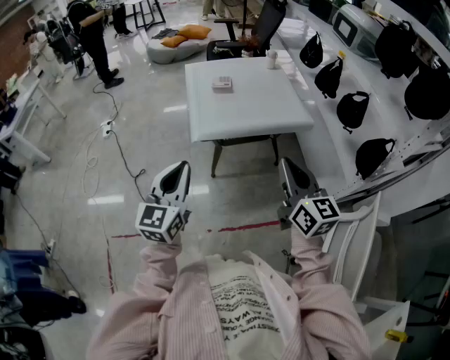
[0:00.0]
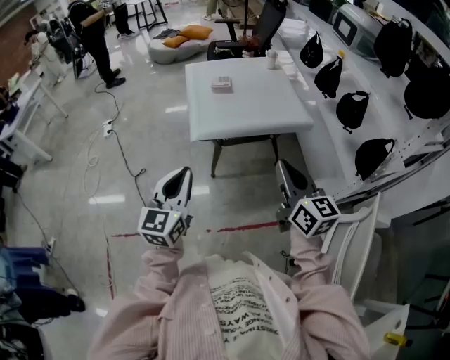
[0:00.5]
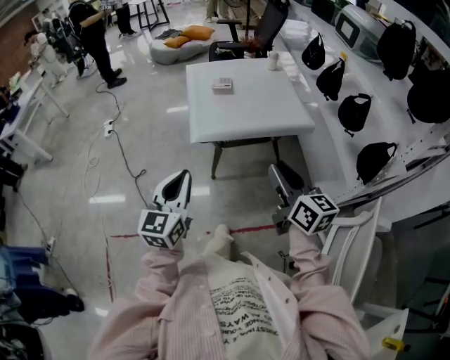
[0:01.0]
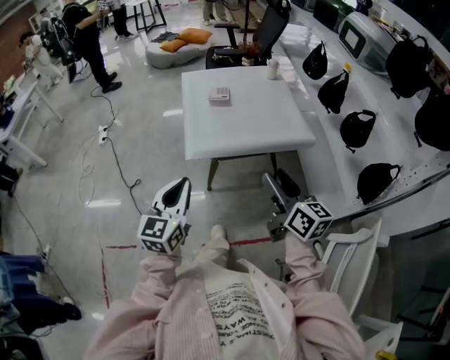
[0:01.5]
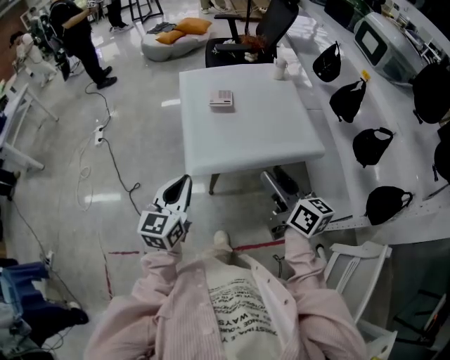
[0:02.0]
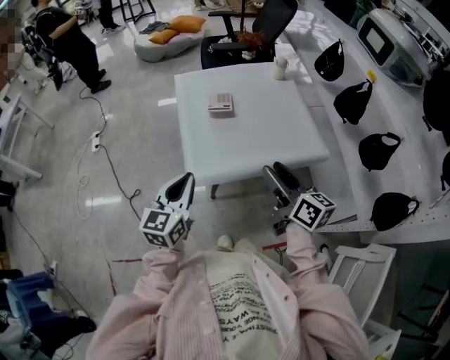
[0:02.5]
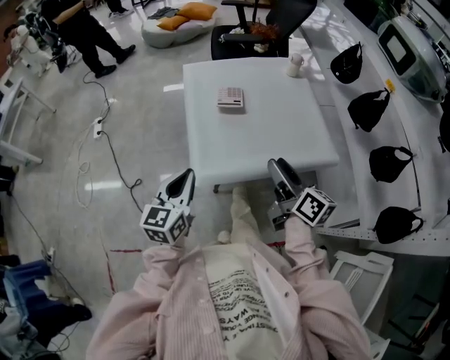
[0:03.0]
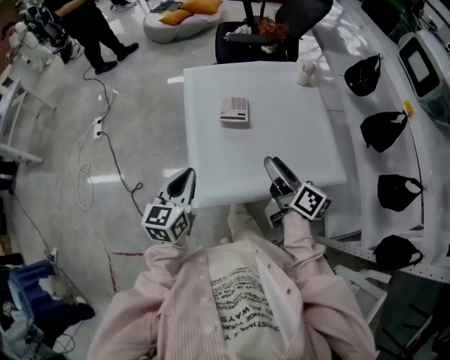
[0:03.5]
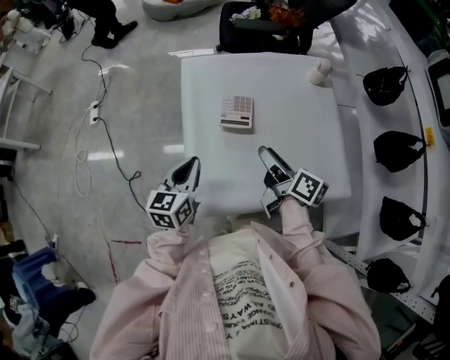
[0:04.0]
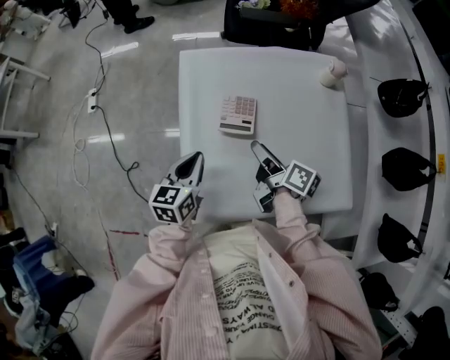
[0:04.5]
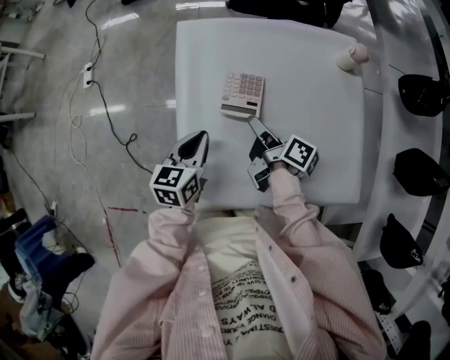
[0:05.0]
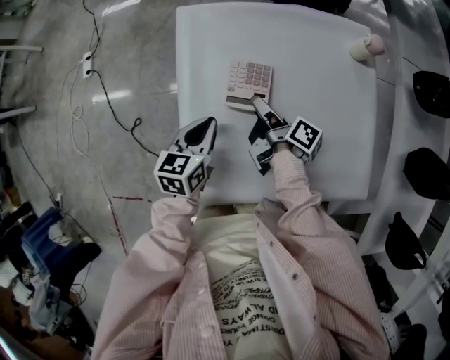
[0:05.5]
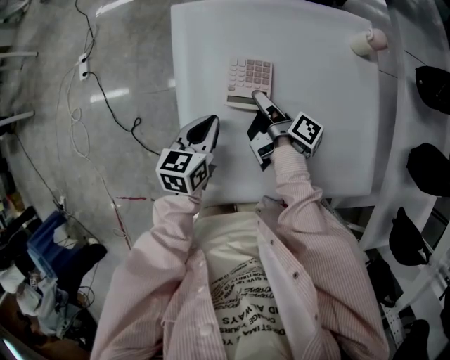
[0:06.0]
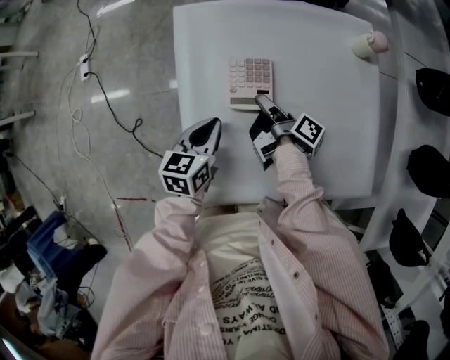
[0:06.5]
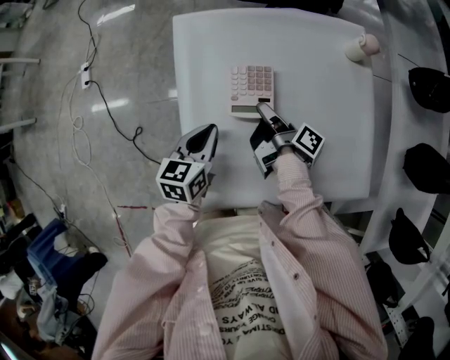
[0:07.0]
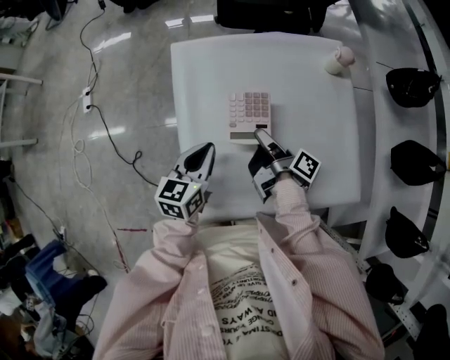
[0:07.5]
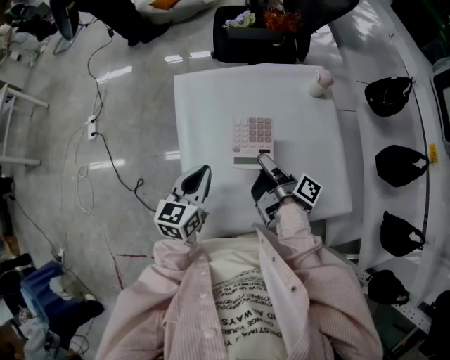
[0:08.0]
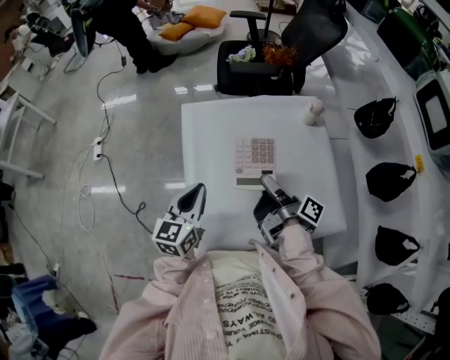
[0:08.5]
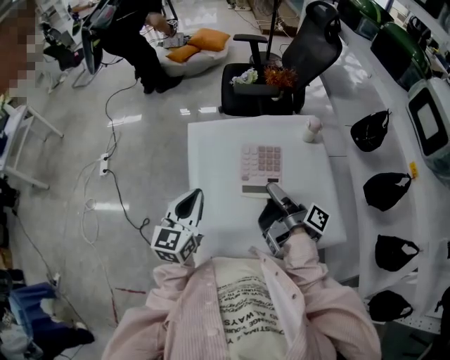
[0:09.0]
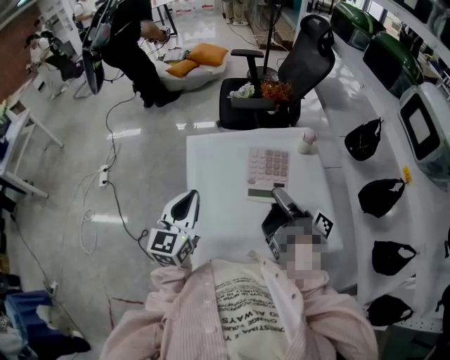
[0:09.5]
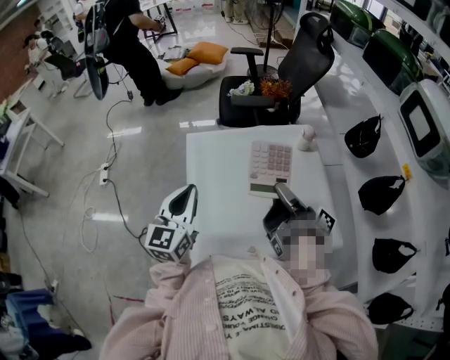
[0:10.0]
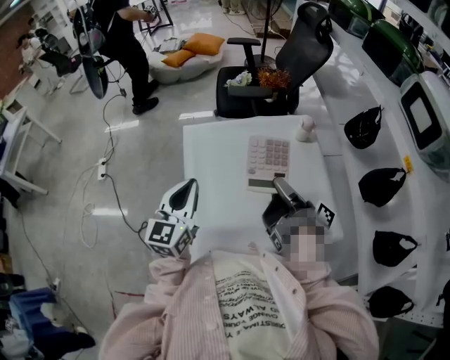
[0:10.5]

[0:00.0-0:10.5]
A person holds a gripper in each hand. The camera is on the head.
0:00.0 to 0:02.0: The left gripper moves about 20 cm.
0:02.0 to 0:04.0: The left gripper moves roughly 30 cm.
0:04.0 to 0:06.5: The left gripper shifts approximately 10 cm downward.
0:06.5 to 0:08.5: The left gripper goes downward and returns, some 10 cm each way, and rotates about 20 degrees.
0:08.5 to 0:10.5: The left gripper shifts approximately 10 cm upward.

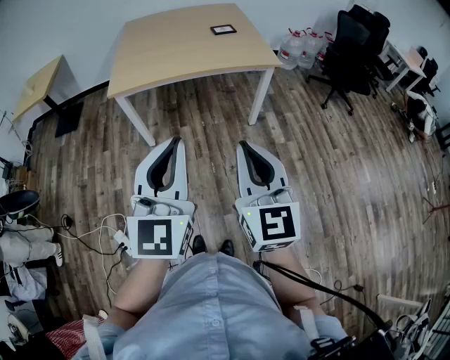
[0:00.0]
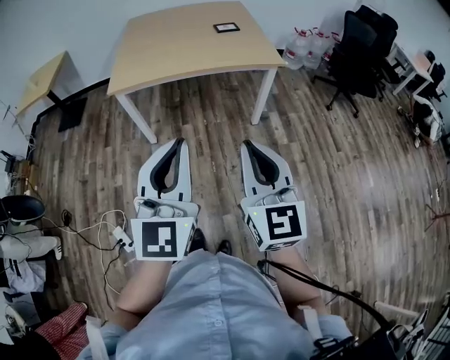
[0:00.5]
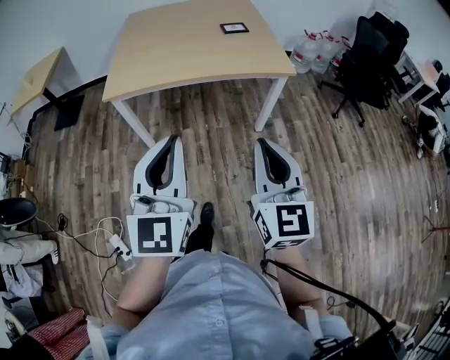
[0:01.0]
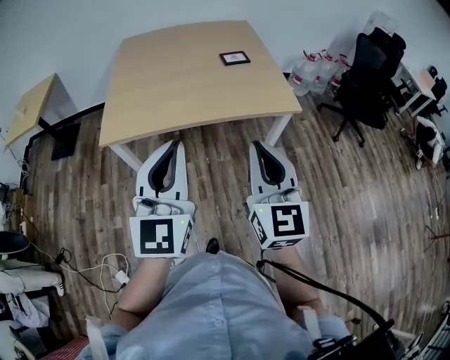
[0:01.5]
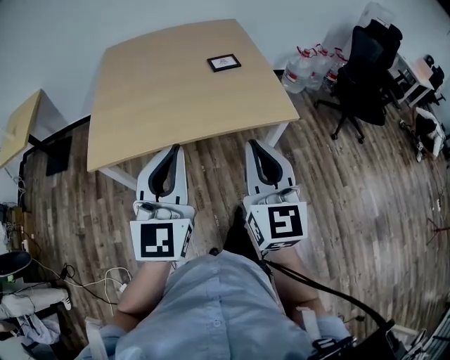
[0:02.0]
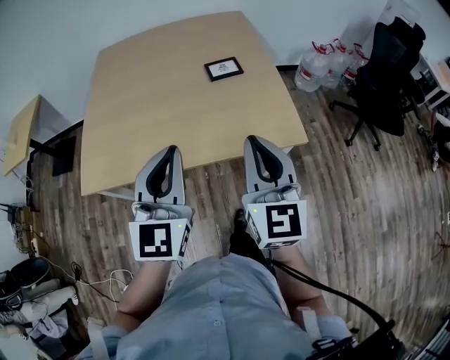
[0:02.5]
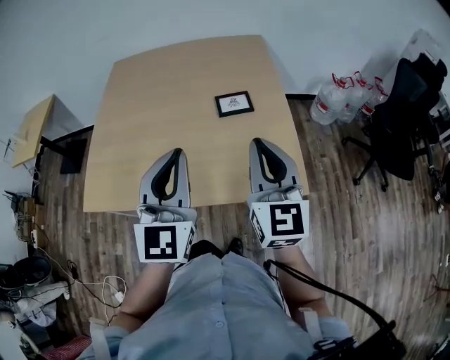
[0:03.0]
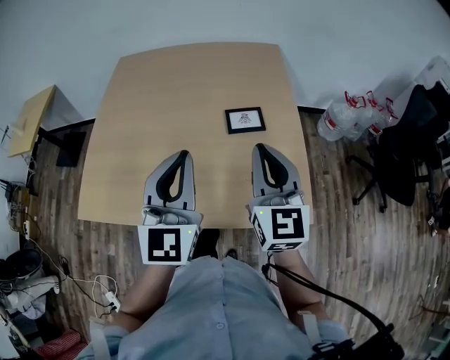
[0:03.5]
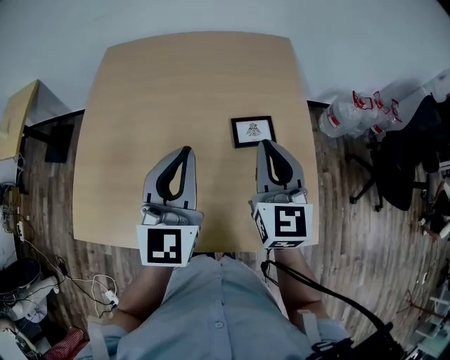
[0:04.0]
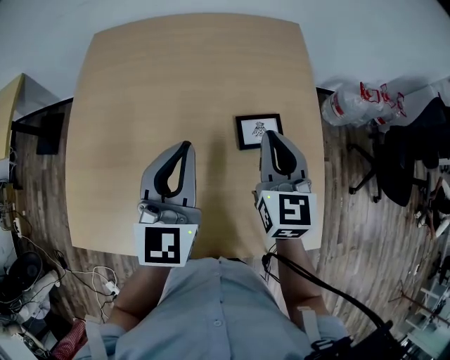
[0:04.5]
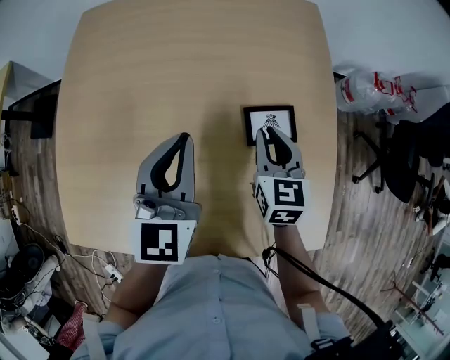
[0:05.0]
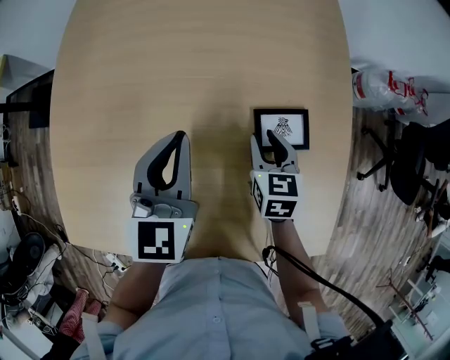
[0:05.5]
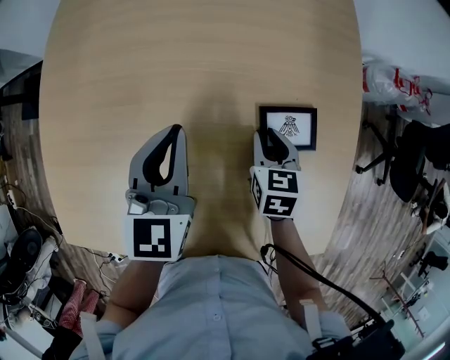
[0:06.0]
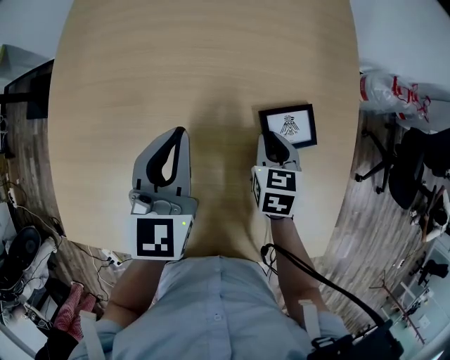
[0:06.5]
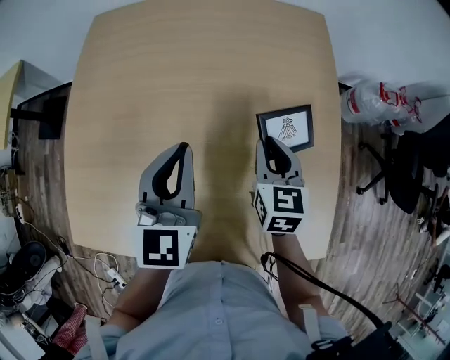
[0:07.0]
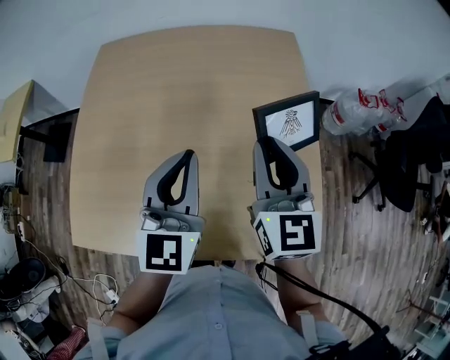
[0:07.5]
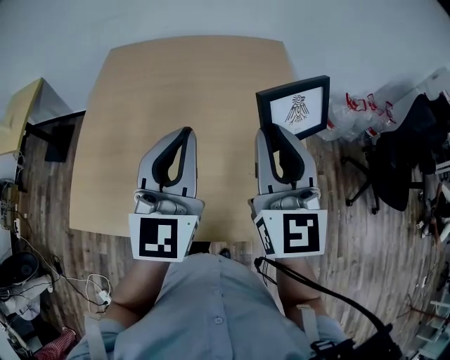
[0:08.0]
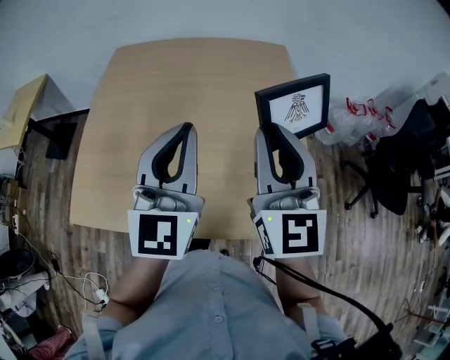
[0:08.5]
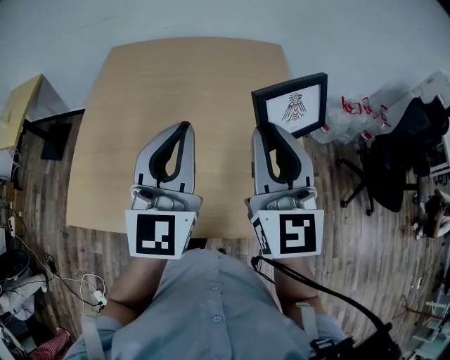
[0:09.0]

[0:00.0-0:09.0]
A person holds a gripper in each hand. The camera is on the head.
0:00.0 to 0:02.0: The grippers both shift forward by approximately 35 cm.
0:02.0 to 0:04.5: Both grippers are carried forward, about 50 cm.
0:04.5 to 0:07.0: The right gripper shifts approximately 10 cm downward.
0:07.0 to 0:09.0: The right gripper shifts approximately 30 cm upward and backward, and tilts its fingers some 40 degrees upward. Meanwhile the left gripper is displaced upward, backward and to the right by approximately 20 cm, and changes its angle by approximately 20 degrees.

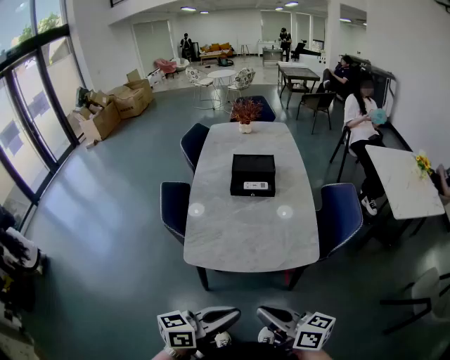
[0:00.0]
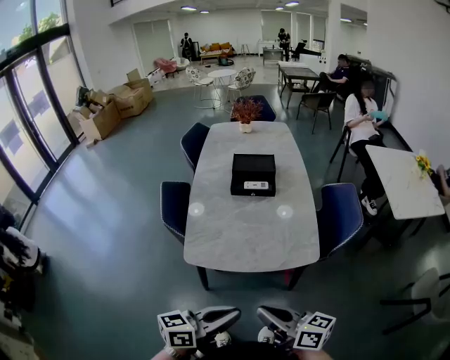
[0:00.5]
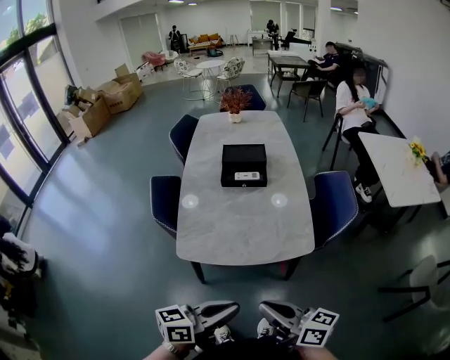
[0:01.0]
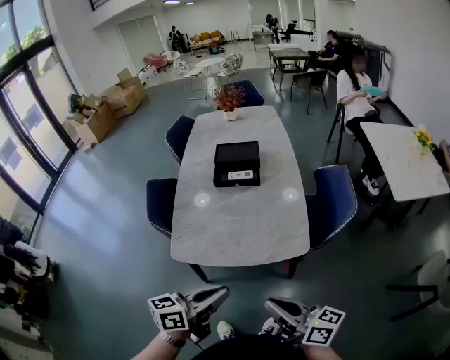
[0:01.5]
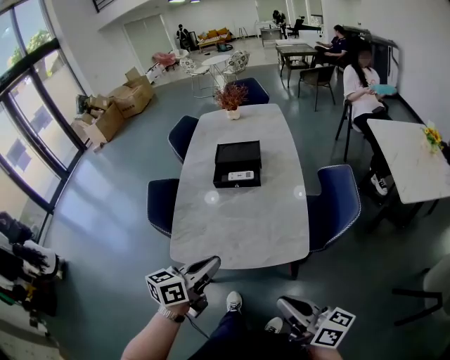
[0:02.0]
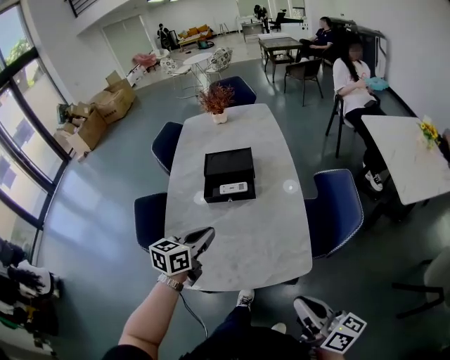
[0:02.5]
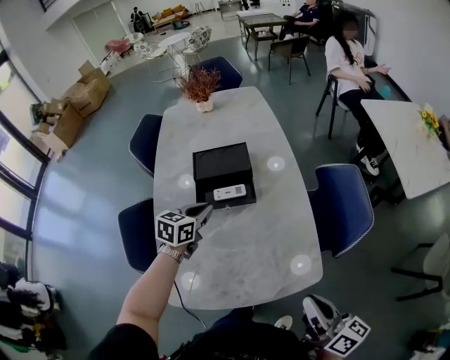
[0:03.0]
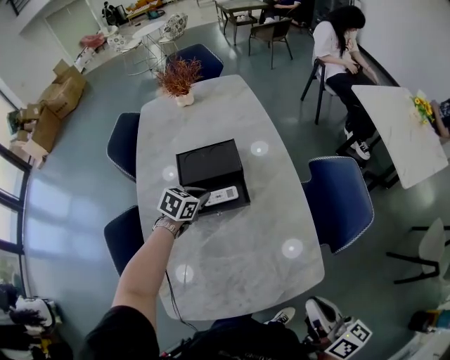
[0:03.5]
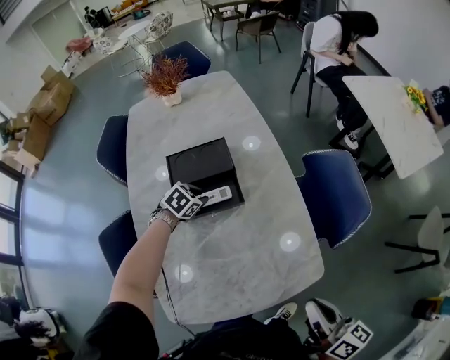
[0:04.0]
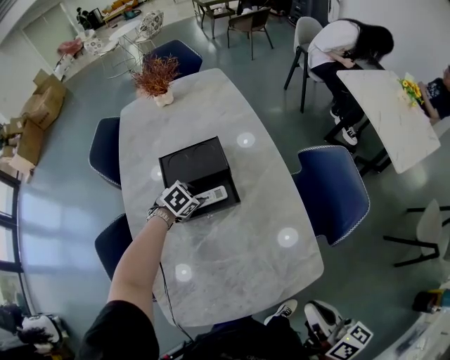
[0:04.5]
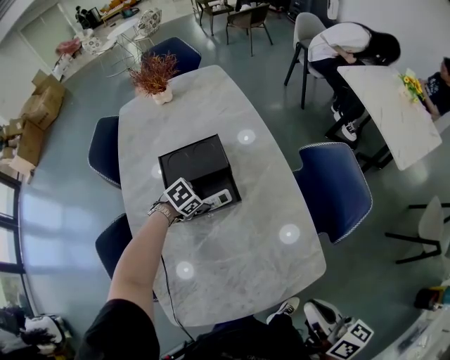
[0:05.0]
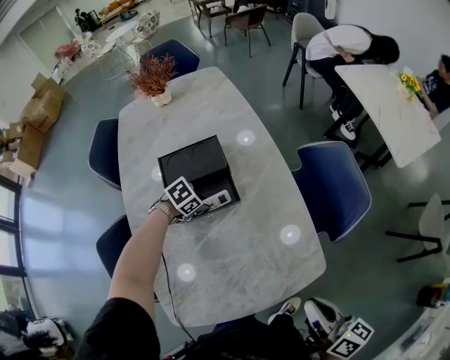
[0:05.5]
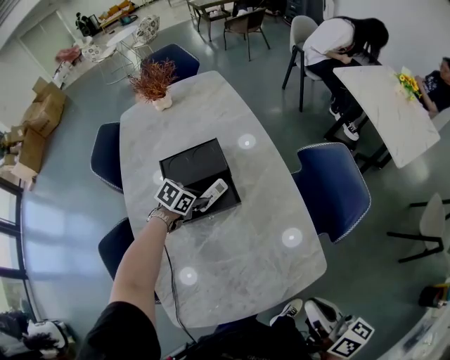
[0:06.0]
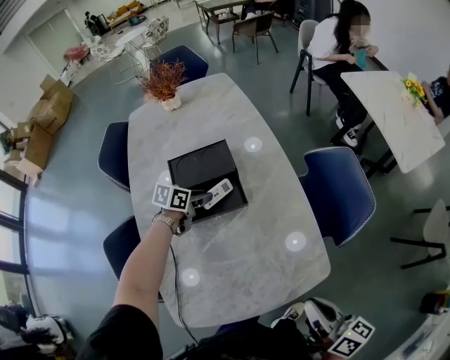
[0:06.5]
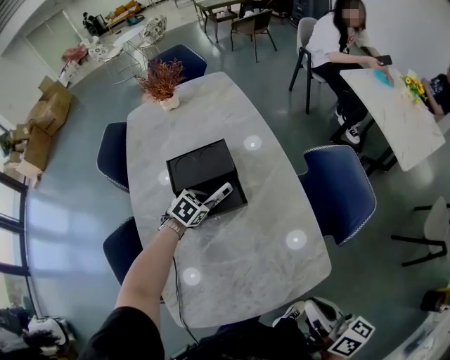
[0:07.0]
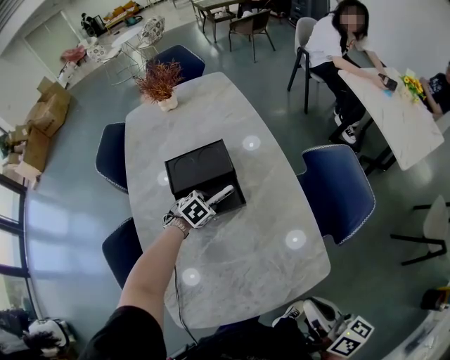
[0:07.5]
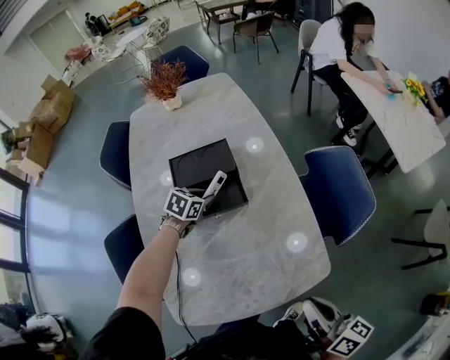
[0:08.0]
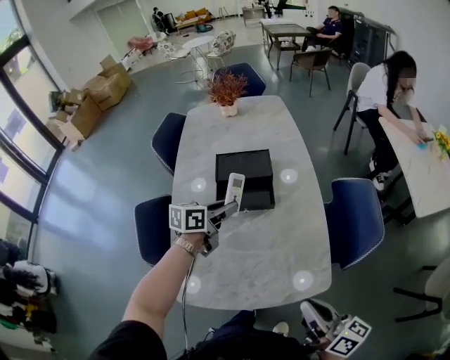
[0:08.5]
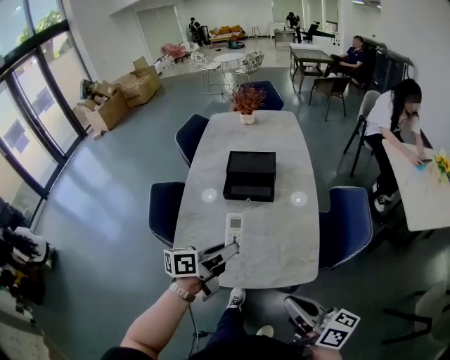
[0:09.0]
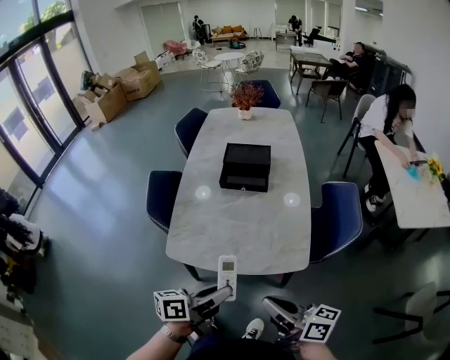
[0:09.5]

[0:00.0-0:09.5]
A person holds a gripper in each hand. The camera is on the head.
0:00.0 to 0:02.0: The right gripper is displaced to the right by approximately 15 cm. Meanwhile the left gripper moves forward, approximately 15 cm.
0:02.0 to 0:04.0: The left gripper ends up approximately 50 cm from where it was, and tilts its fingers about 50 degrees downward. The right gripper ends up roughly 20 cm from where it was, and rotates some 40 degrees.
0:04.0 to 0:05.5: The left gripper changes its angle by approximately 20 degrees, and opens, then closes once more.
0:05.5 to 0:07.5: The left gripper turns by some 20 degrees.
0:07.5 to 0:09.5: The left gripper moves some 60 cm, and tilts its fingers approximately 60 degrees upward. The right gripper ends up some 20 cm from where it was, and swivels roughly 40 degrees.
